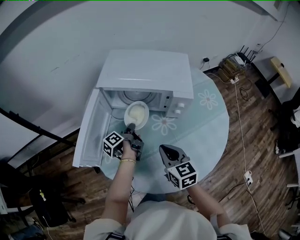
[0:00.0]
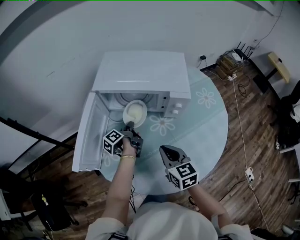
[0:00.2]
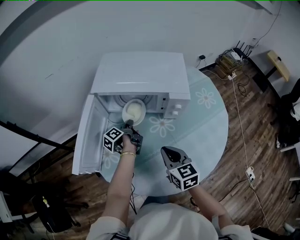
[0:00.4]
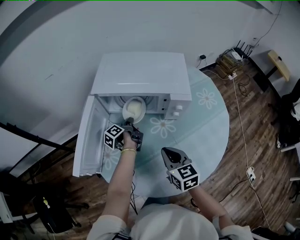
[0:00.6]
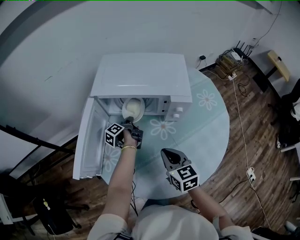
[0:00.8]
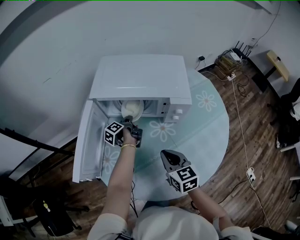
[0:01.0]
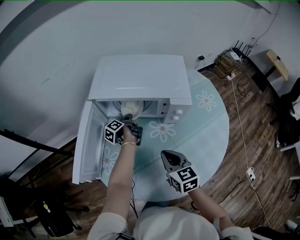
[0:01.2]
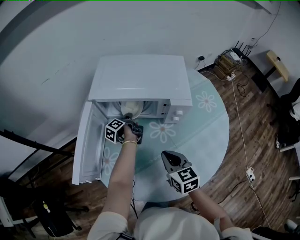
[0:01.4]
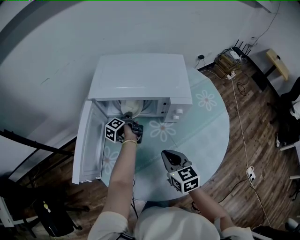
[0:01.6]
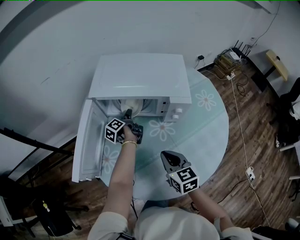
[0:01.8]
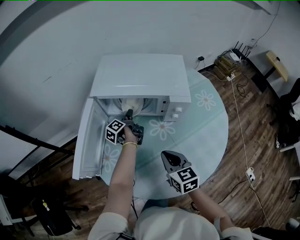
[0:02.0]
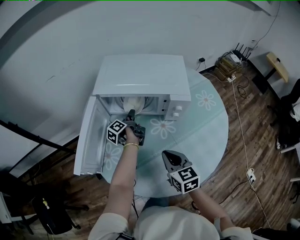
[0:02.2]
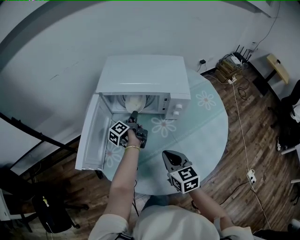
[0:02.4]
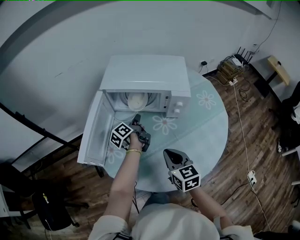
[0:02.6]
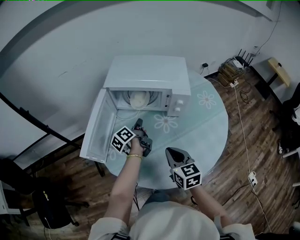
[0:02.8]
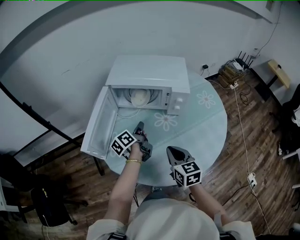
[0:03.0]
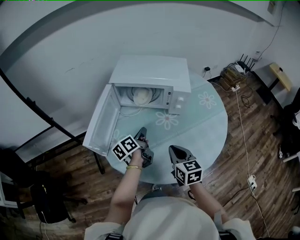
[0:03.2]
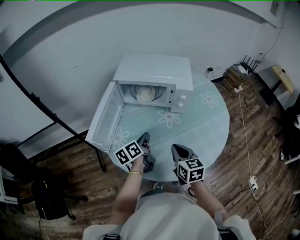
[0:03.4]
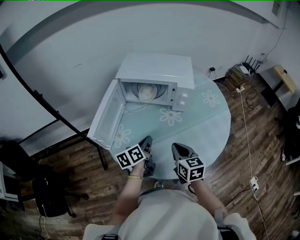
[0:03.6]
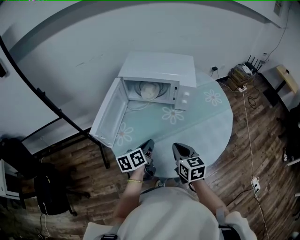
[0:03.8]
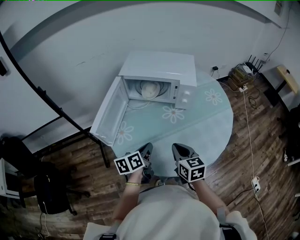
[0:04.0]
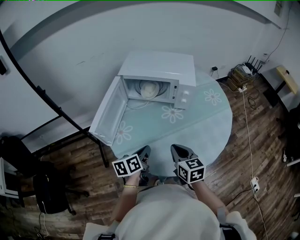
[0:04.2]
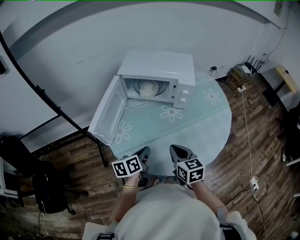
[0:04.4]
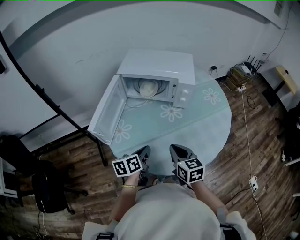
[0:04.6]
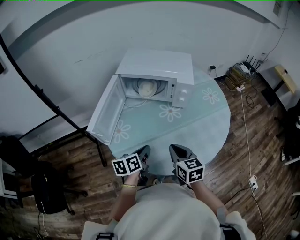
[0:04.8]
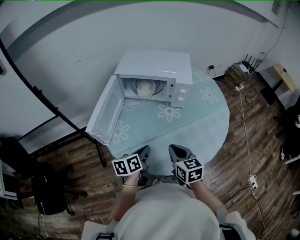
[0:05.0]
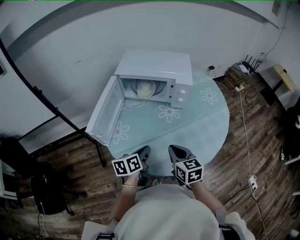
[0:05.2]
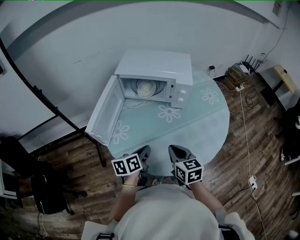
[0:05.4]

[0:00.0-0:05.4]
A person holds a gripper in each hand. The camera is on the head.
0:01.4 to 0:02.8: The right gripper shifts by roughly 10 cm.
0:02.8 to 0:04.0: The right gripper ends up roughly 5 cm from where it was.

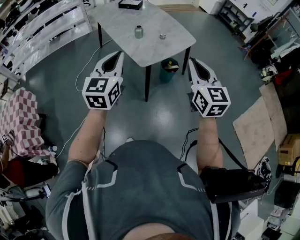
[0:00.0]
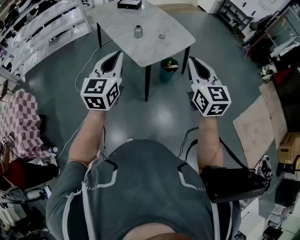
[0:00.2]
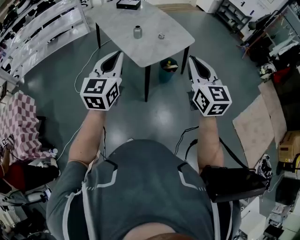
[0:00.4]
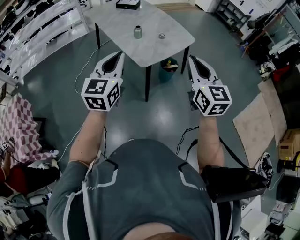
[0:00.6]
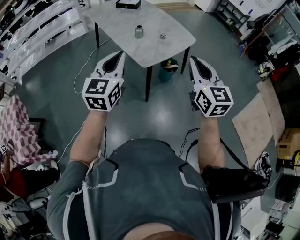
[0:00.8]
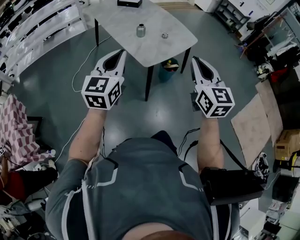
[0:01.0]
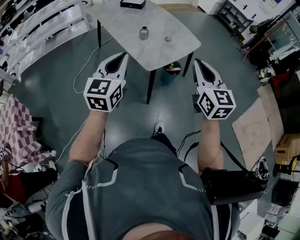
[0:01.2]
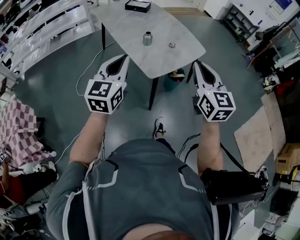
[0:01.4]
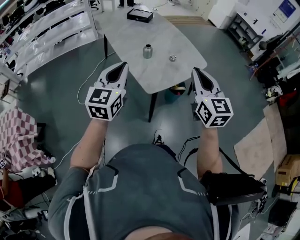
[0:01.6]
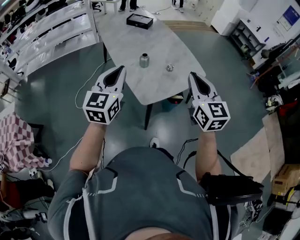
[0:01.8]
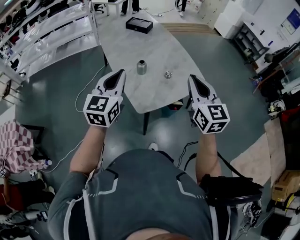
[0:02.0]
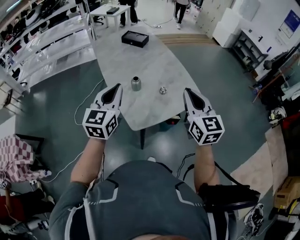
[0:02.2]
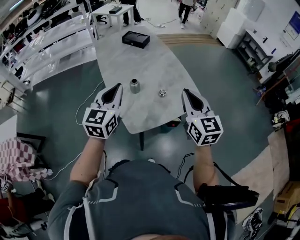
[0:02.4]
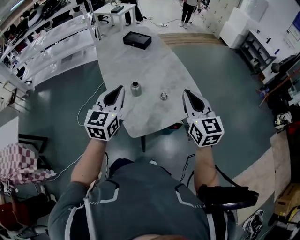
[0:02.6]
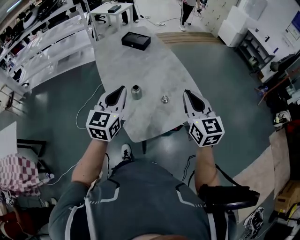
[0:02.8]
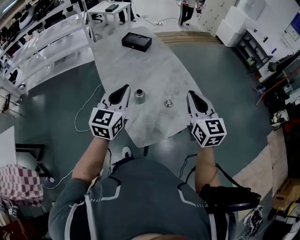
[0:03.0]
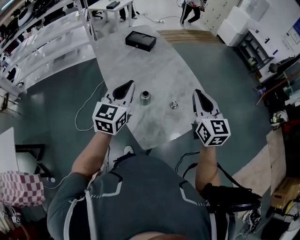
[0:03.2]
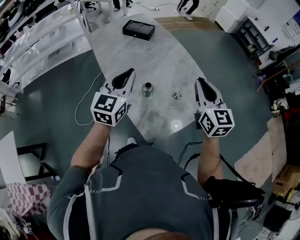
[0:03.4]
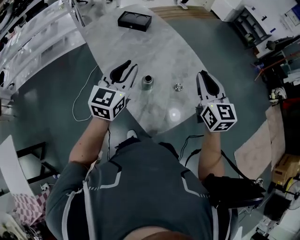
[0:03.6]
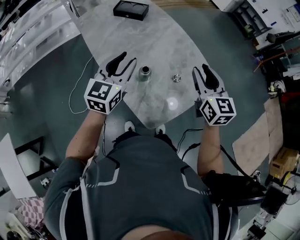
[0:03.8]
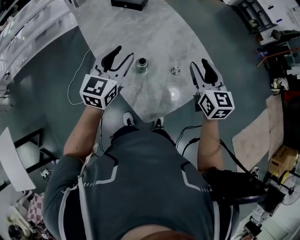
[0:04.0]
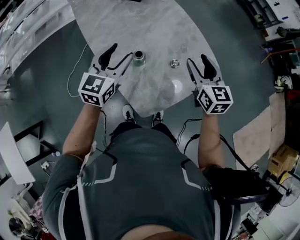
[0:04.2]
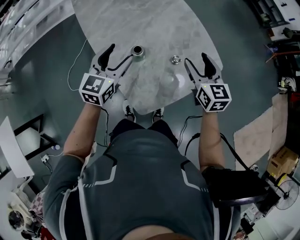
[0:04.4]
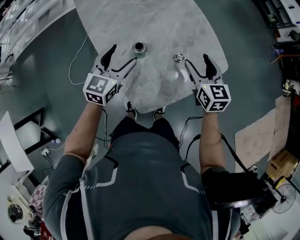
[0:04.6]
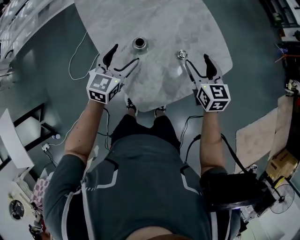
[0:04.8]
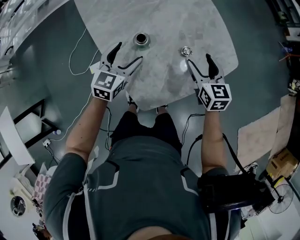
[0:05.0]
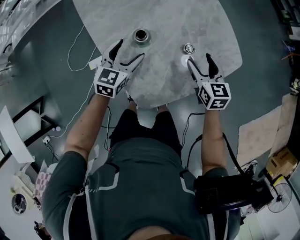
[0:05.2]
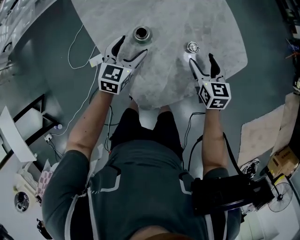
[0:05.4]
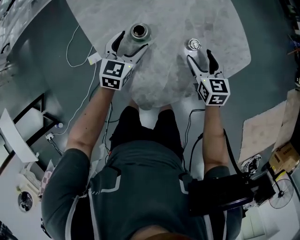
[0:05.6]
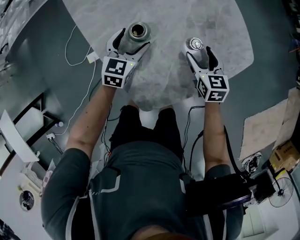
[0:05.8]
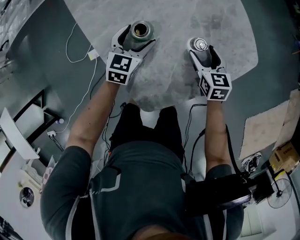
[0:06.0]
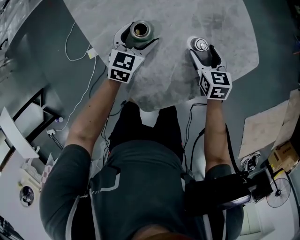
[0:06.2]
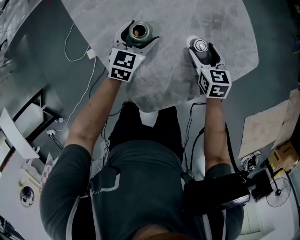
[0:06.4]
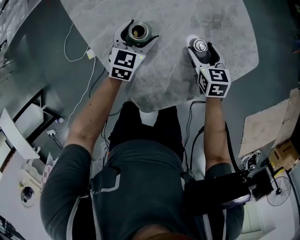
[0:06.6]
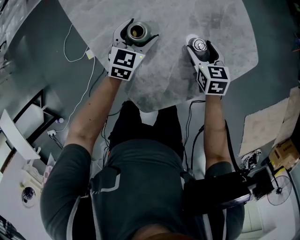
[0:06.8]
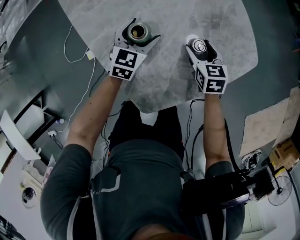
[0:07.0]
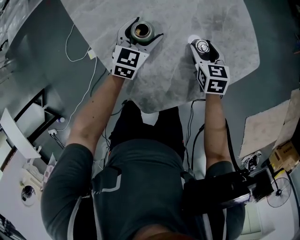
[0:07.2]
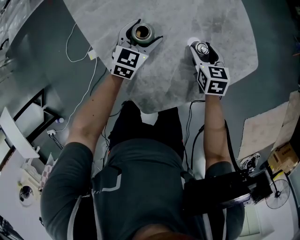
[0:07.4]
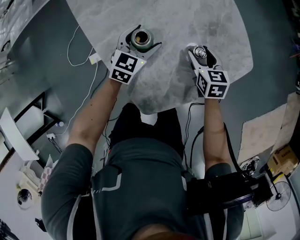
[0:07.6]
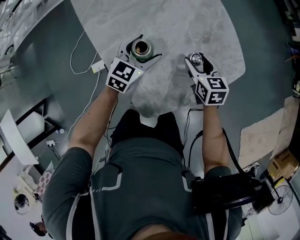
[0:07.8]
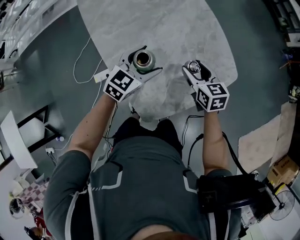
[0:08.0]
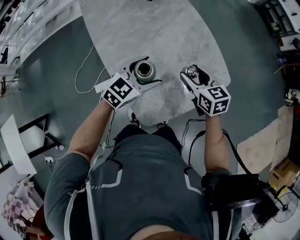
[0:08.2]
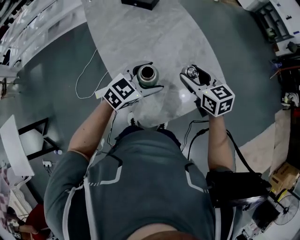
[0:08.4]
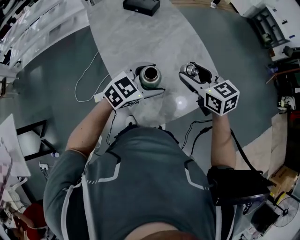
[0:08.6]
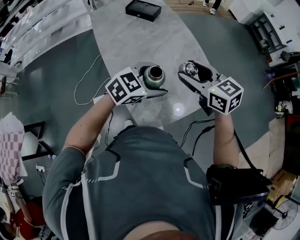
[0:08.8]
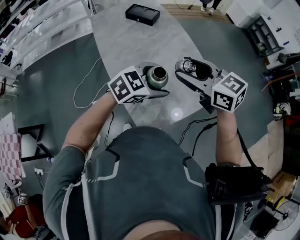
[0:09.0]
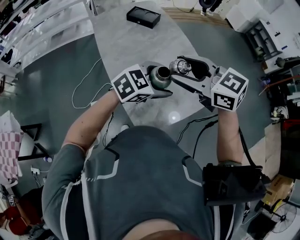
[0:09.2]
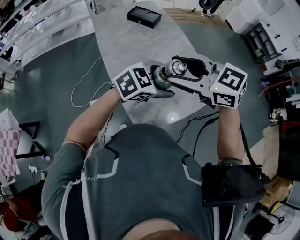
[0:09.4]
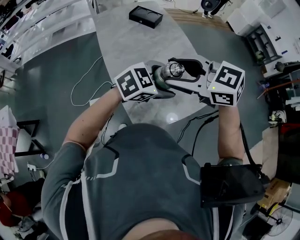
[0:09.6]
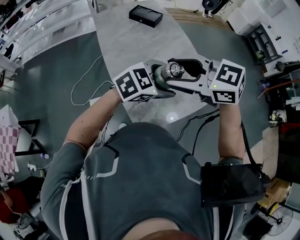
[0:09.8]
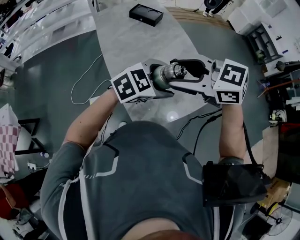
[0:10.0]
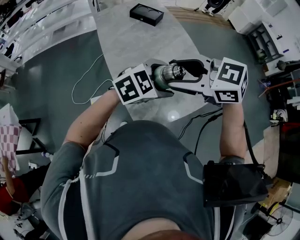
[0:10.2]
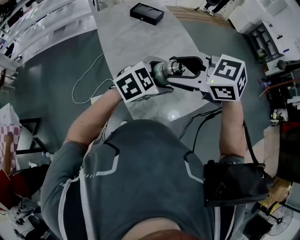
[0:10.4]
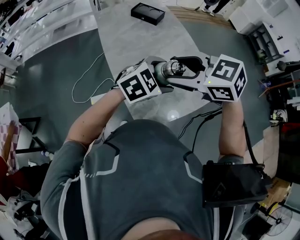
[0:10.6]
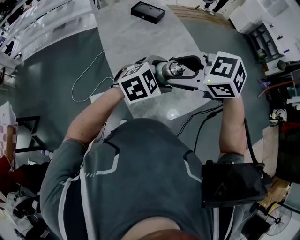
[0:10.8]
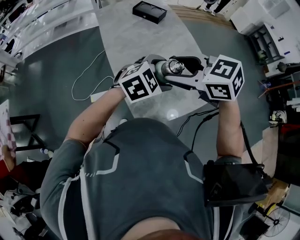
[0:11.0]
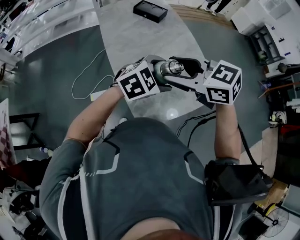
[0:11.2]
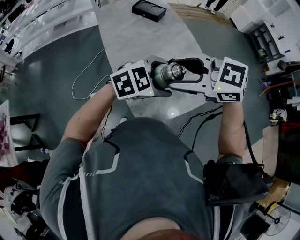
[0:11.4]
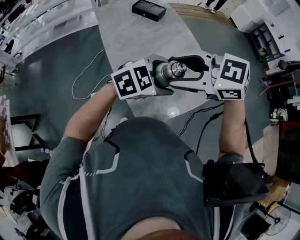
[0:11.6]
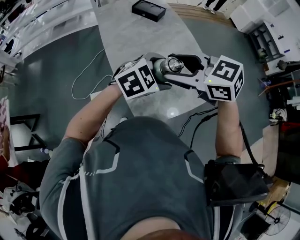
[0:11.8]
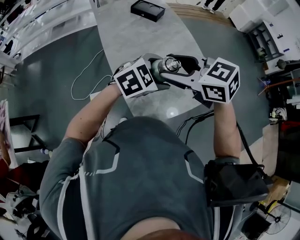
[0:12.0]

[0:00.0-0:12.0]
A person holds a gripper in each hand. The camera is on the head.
0:00.0 to 0:01.6: Both grippers travel together forward, some 15 cm.
0:01.6 to 0:03.0: The two grippers go some 30 cm forward.
0:03.0 to 0:04.4: The grippers both shift downward and forward by roughly 20 cm. The right gripper opens, while the left gripper opens its fingers.
0:04.4 to 0:06.0: The two grippers go roughly 30 cm downward.
0:06.0 to 0:07.6: The grippers move only a little.
0:07.6 to 0:09.0: The right gripper travels upward by approximately 40 cm, and rotates some 40 degrees. The left gripper is displaced upward and backward by roughly 35 cm, and turns by approximately 30 degrees.
0:09.0 to 0:10.4: The right gripper ends up about 10 cm from where it was, and changes its angle by about 30 degrees.
0:10.4 to 0:12.0: There are only small adjustments of the grippers.

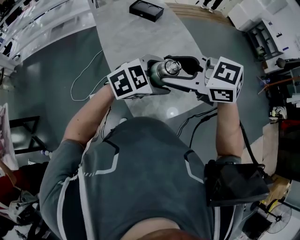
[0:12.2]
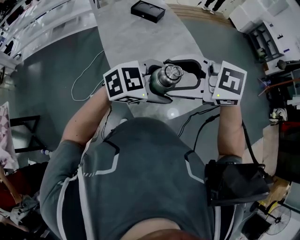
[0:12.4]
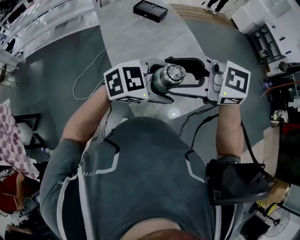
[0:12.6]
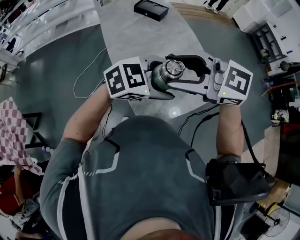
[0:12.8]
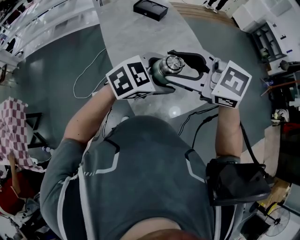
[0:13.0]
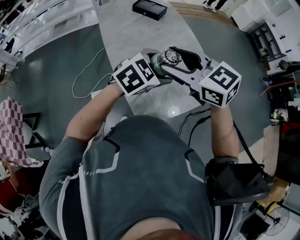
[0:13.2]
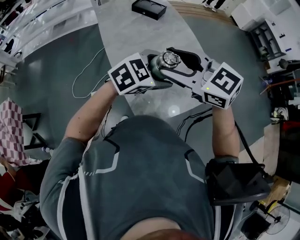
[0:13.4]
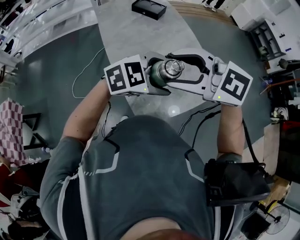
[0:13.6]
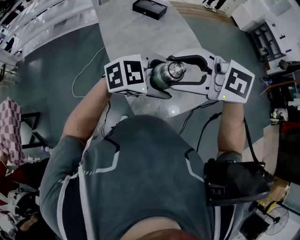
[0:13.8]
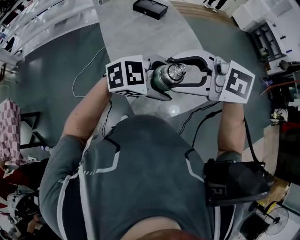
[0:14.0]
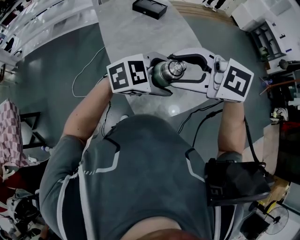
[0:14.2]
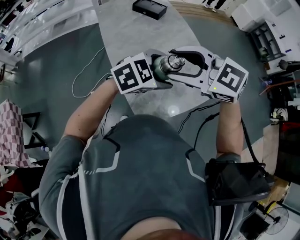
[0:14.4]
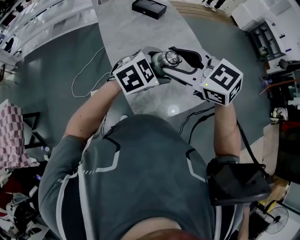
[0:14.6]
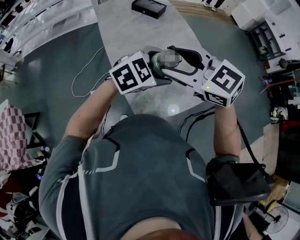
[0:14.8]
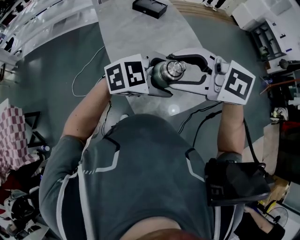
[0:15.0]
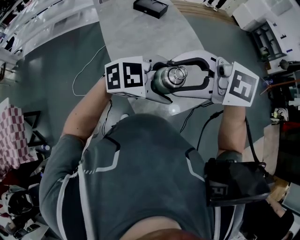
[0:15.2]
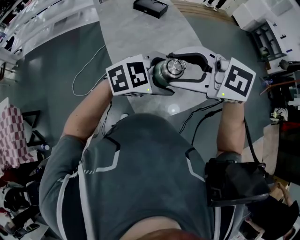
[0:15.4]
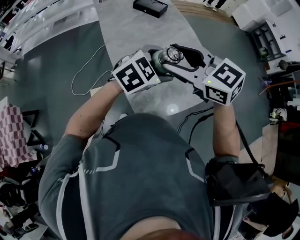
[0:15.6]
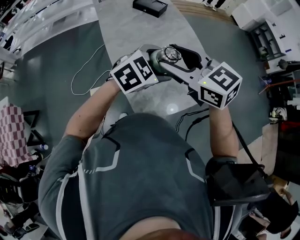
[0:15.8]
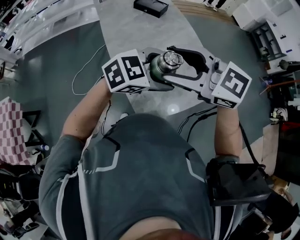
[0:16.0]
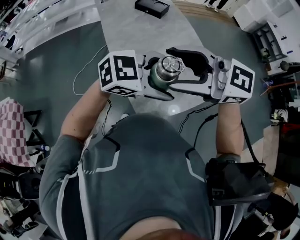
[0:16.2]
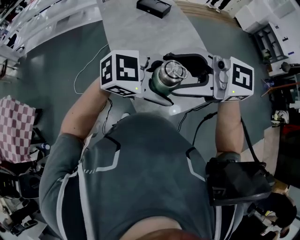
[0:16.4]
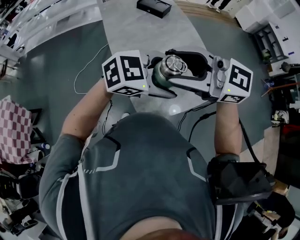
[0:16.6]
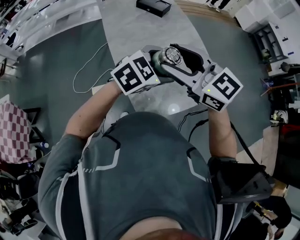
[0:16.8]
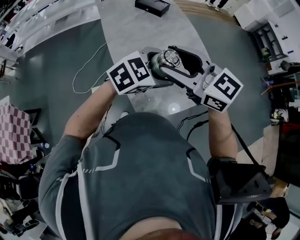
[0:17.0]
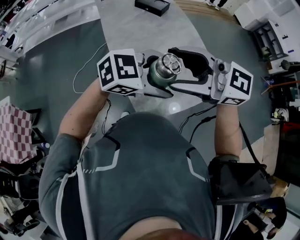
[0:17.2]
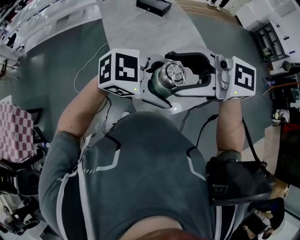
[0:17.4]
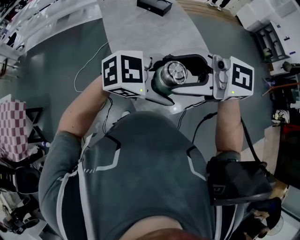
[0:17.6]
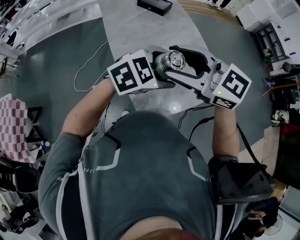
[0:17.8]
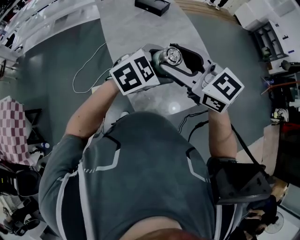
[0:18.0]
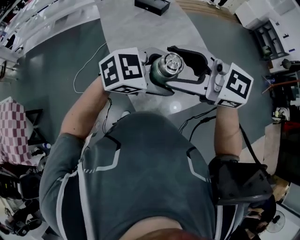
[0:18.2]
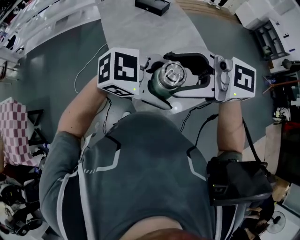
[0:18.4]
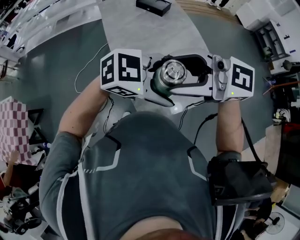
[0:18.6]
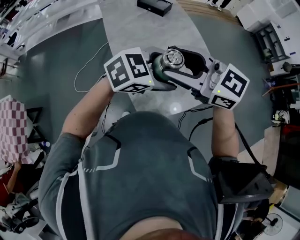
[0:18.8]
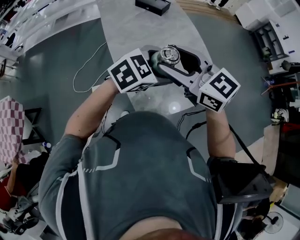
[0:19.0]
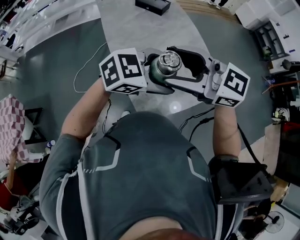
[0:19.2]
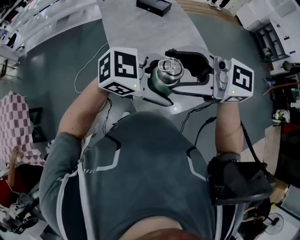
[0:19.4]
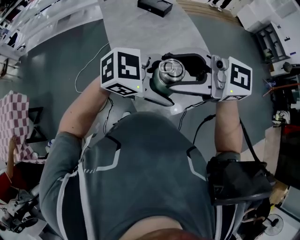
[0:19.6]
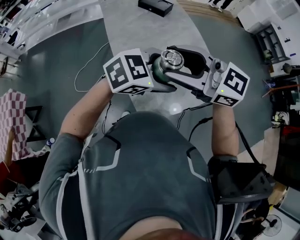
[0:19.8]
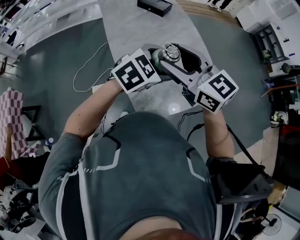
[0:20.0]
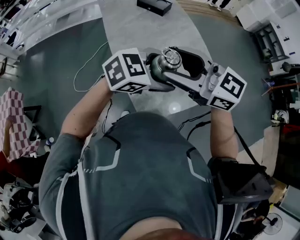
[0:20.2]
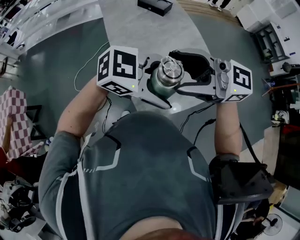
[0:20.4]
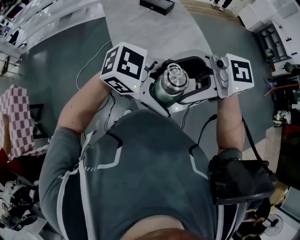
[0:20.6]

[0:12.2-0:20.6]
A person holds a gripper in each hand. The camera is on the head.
0:12.2 to 0:13.6: The grippers make only small movements.
0:15.0 to 0:16.4: The right gripper changes its angle by about 20 degrees.
0:16.4 to 0:17.8: The right gripper moves approximately 5 cm, and swivels about 20 degrees. Meanwhile the left gripper swings up and down, about 5 cm each way, with 2 reversals, and rotates approximately 30 degrees.
0:19.2 to 0:20.6: The right gripper moves approximately 10 cm, and swivels approximately 30 degrees; the left gripper changes place by roughly 10 cm, and rotates roughly 30 degrees.
